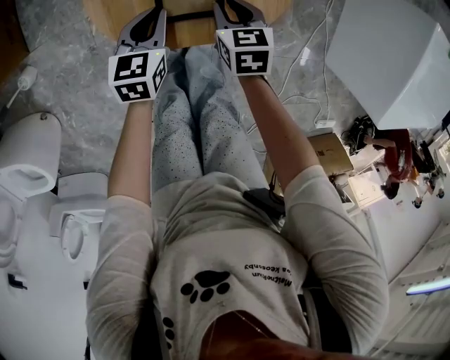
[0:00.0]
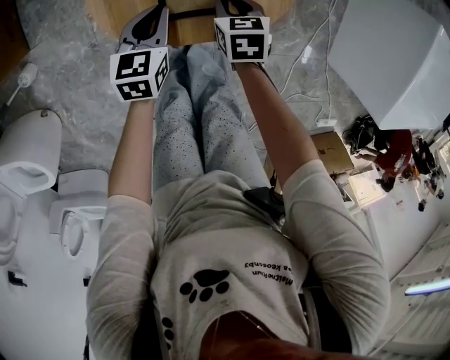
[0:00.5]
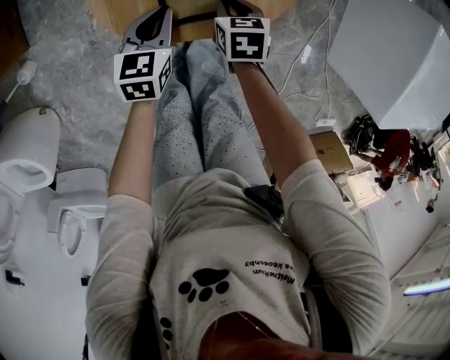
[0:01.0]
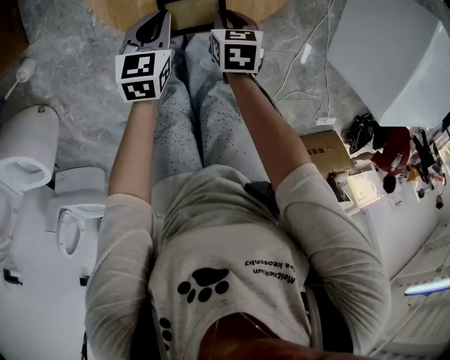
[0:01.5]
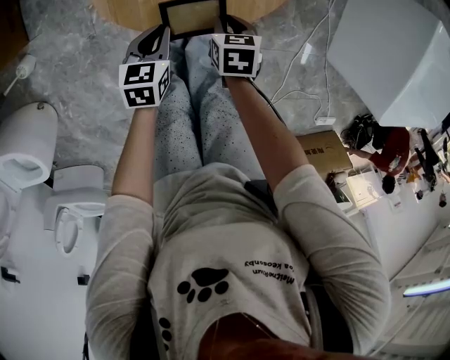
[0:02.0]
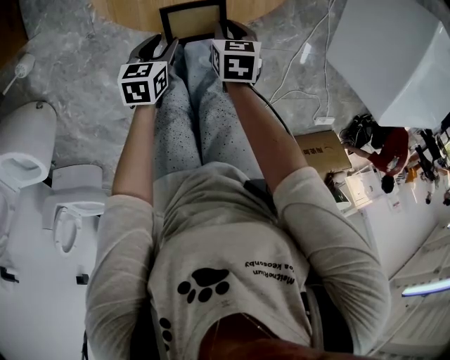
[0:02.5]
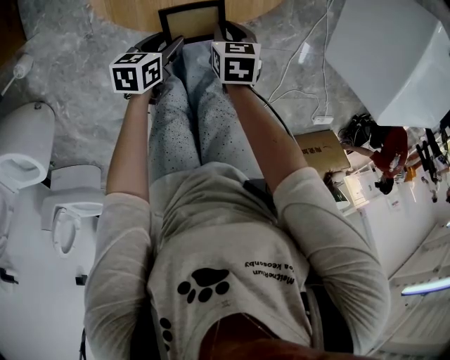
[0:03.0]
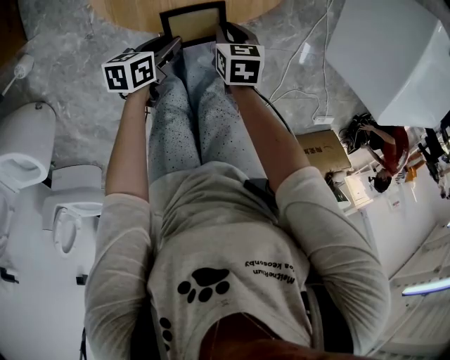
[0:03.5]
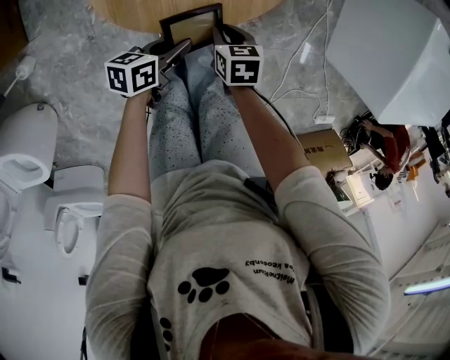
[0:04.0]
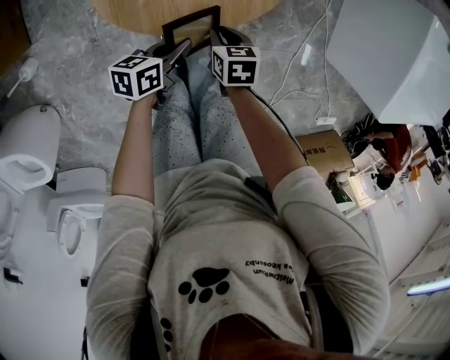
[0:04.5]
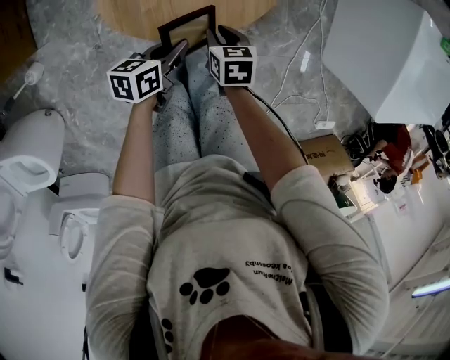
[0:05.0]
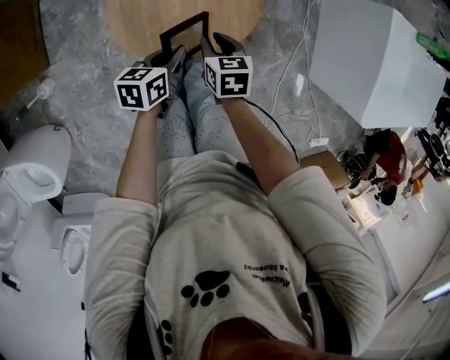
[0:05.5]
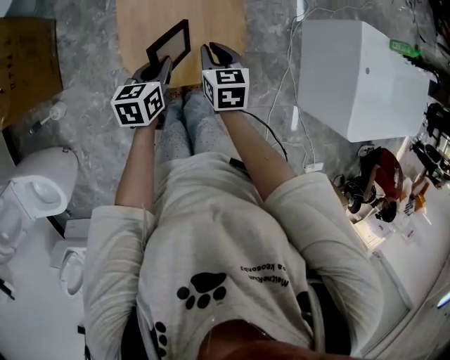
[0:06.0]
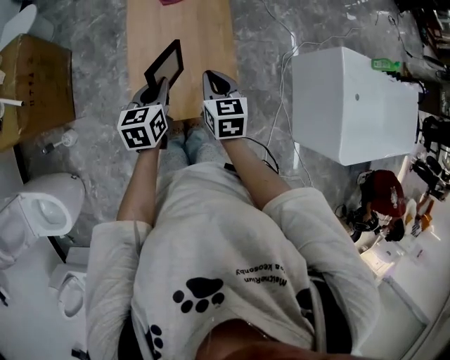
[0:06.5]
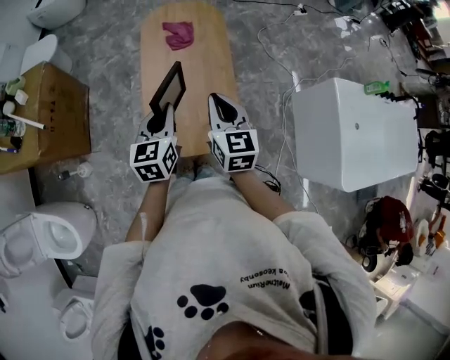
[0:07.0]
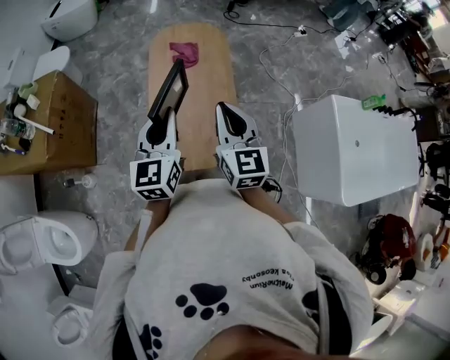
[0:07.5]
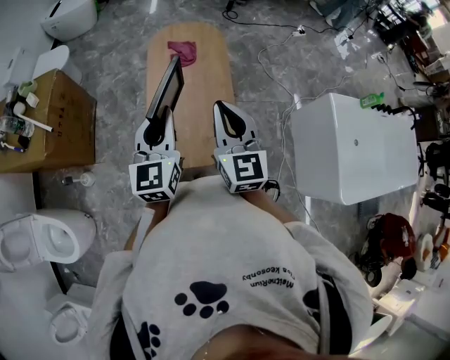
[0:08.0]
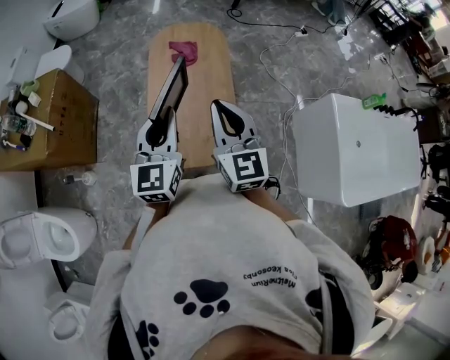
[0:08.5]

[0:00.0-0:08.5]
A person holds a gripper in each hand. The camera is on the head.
0:00.0 to 0:02.0: The two grippers go approximately 10 cm backward.
0:02.0 to 0:04.0: The left gripper travels to the right by approximately 5 cm, changes its angle by approximately 40 degrees, and opens, then closes again.
0:04.0 to 0:06.5: The right gripper shifts some 35 cm upward, and points its fingers approximately 30 degrees further upward; the left gripper travels upward and forward by roughly 35 cm, and turns by approximately 50 degrees.
0:06.5 to 0:08.5: The two grippers go approximately 25 cm upward. The left gripper rotates some 40 degrees, while the right gripper points its fingers some 30 degrees further upward.

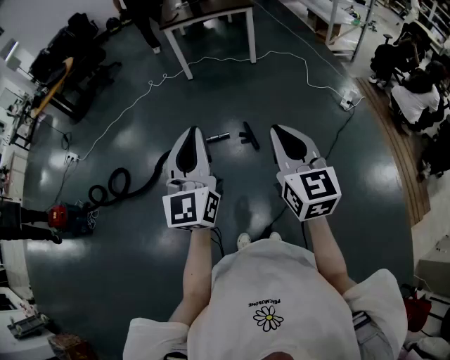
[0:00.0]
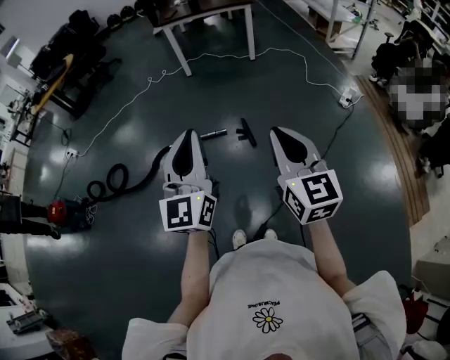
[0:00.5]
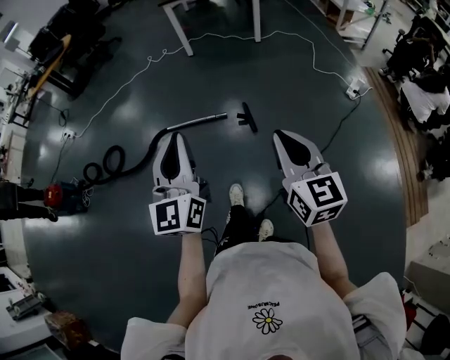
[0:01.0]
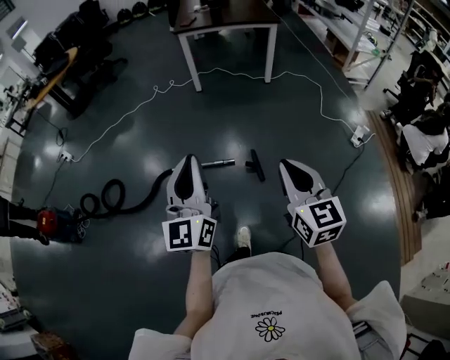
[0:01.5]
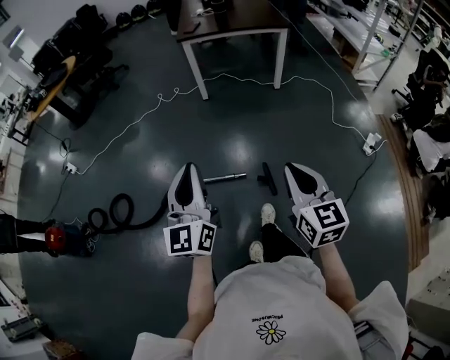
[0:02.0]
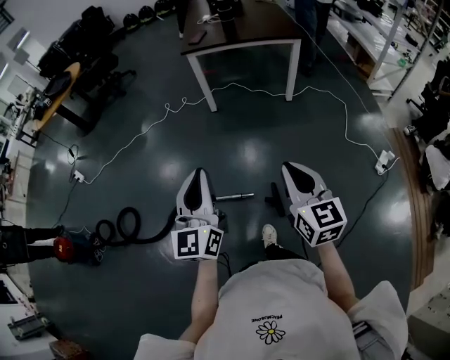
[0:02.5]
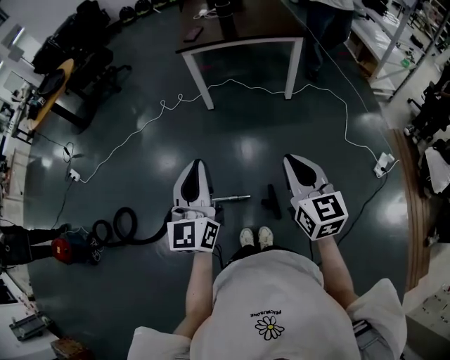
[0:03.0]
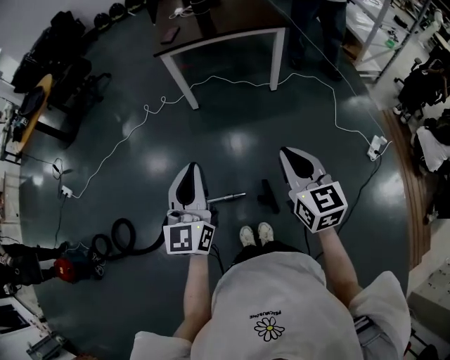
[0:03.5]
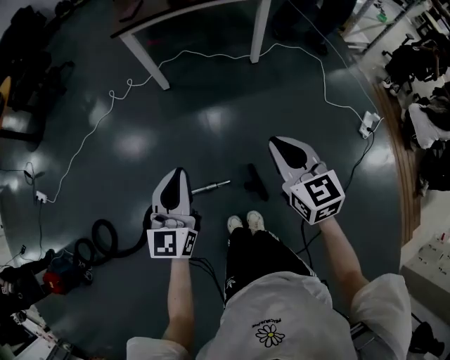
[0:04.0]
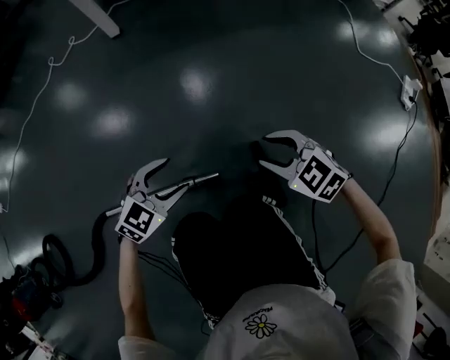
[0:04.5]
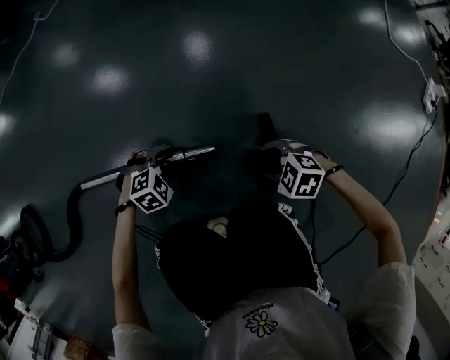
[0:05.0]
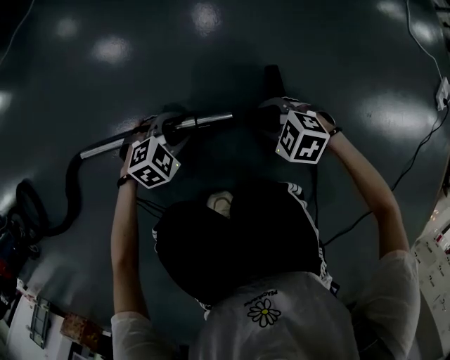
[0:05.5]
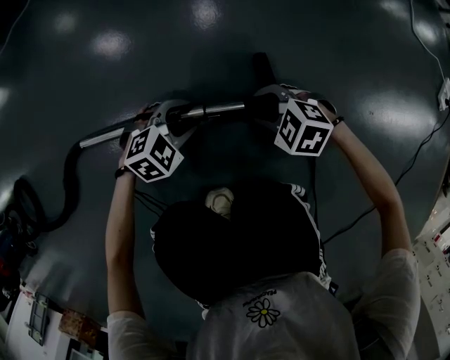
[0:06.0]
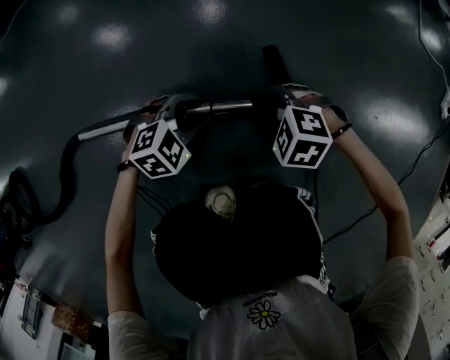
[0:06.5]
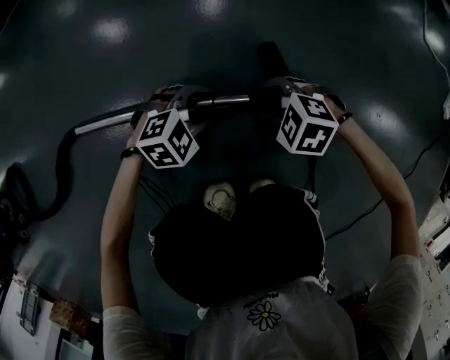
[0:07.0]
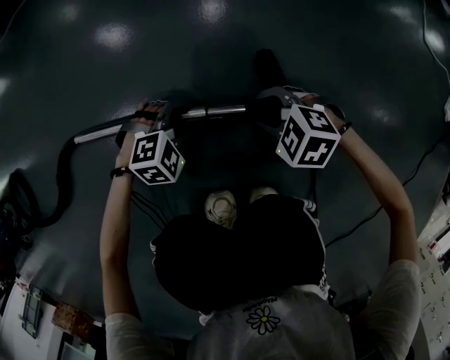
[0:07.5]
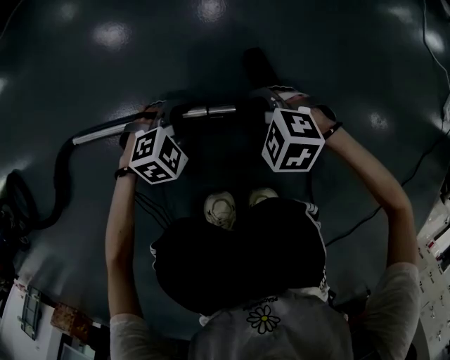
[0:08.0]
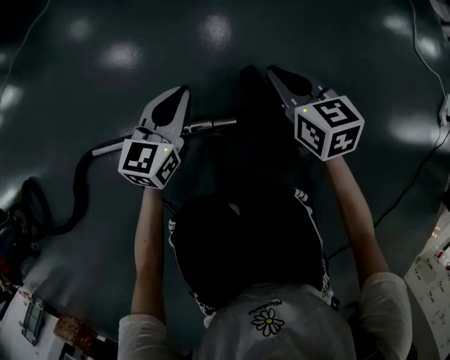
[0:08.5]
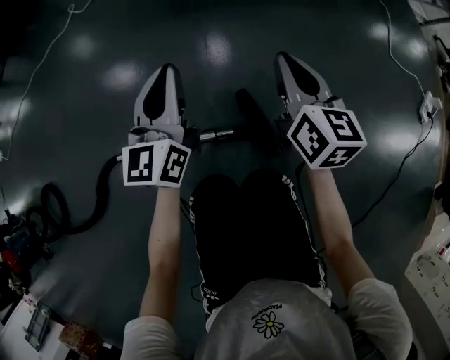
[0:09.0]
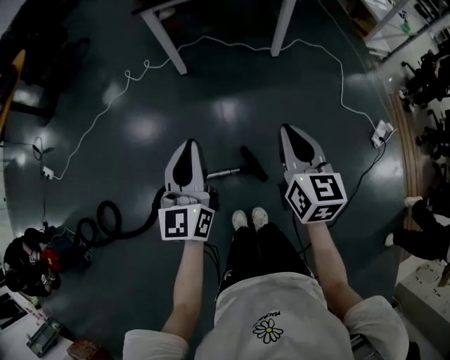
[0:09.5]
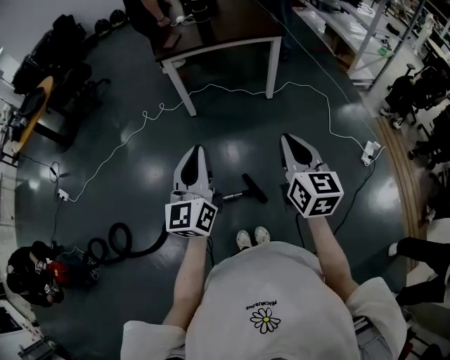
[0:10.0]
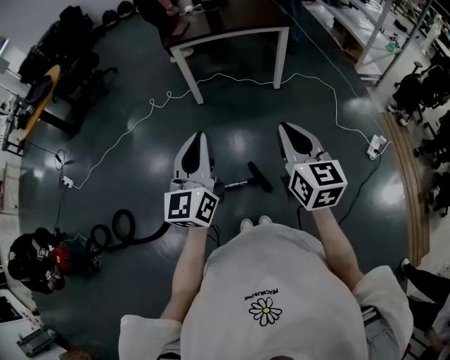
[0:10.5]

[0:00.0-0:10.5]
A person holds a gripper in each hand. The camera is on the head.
0:00.0 to 0:02.0: Both grippers travel together forward, approximately 30 cm.
0:02.0 to 0:04.0: Both grippers move forward and downward, some 40 cm. The left gripper turns by about 20 degrees.
0:04.0 to 0:06.5: Both grippers move downward, about 80 cm. The right gripper angles its fingers downward, by about 50 degrees, and opens up. The left gripper angles its fingers downward, by roughly 50 degrees, and opens up.
0:06.5 to 0:08.5: The left gripper moves upward, approximately 15 cm, tips its fingers upward by about 40 degrees, and closes up, while the right gripper moves about 20 cm, angles its fingers upward, by about 40 degrees, and closes up.
0:08.5 to 0:10.5: Both grippers move upward, about 90 cm. The left gripper changes its angle by approximately 30 degrees. Meanwhile the right gripper swivels some 30 degrees.

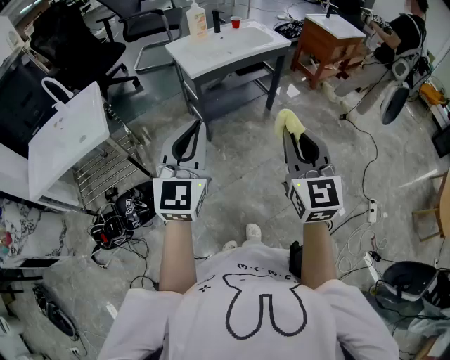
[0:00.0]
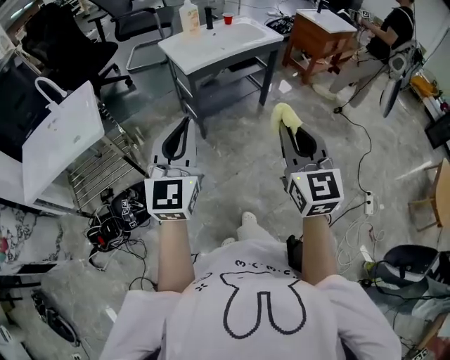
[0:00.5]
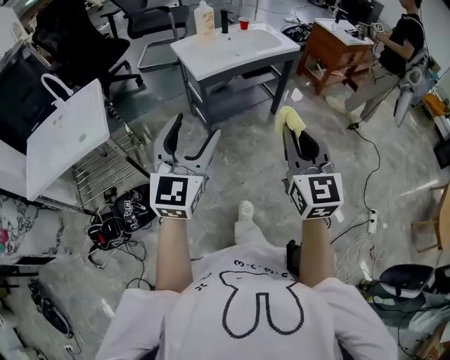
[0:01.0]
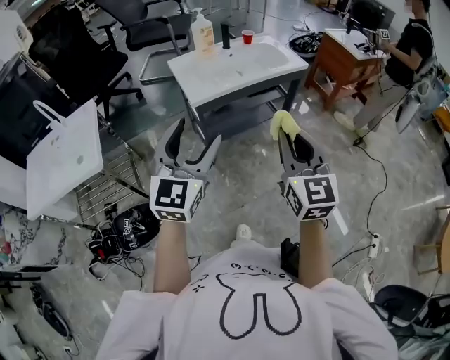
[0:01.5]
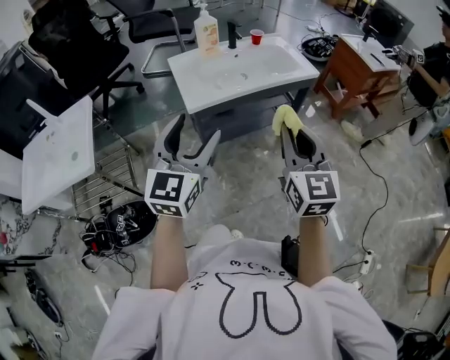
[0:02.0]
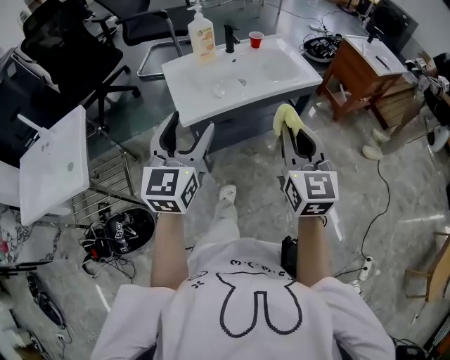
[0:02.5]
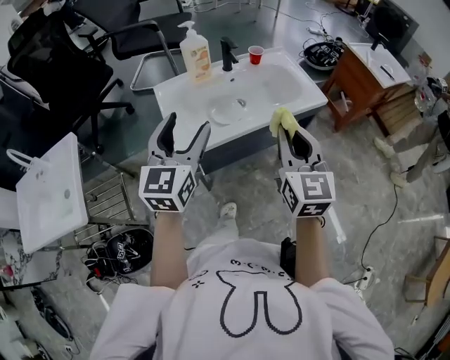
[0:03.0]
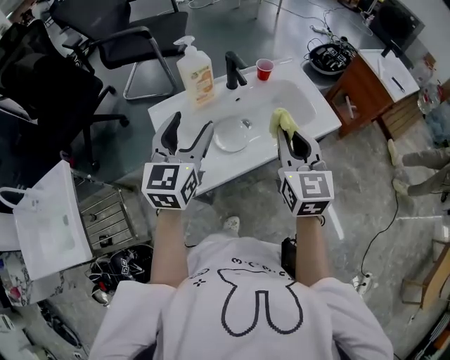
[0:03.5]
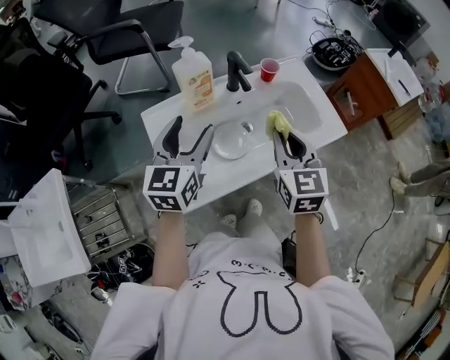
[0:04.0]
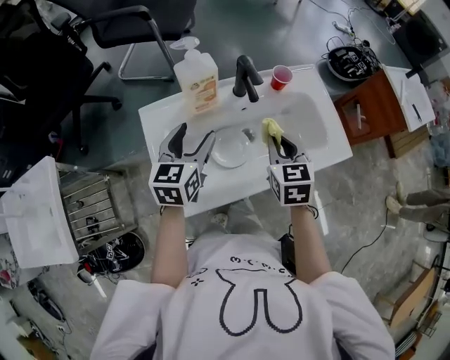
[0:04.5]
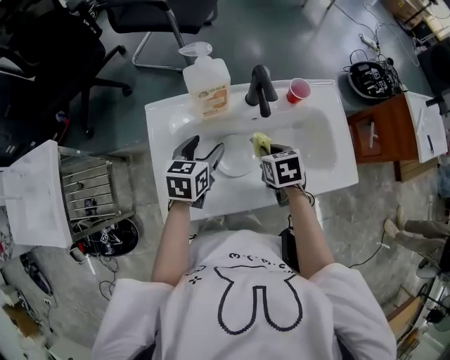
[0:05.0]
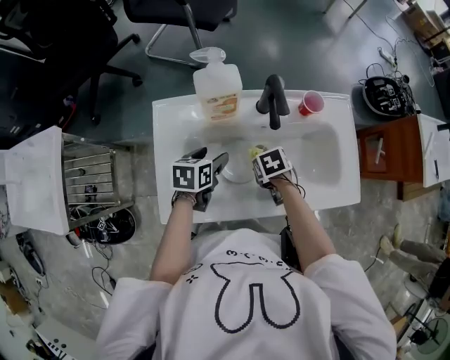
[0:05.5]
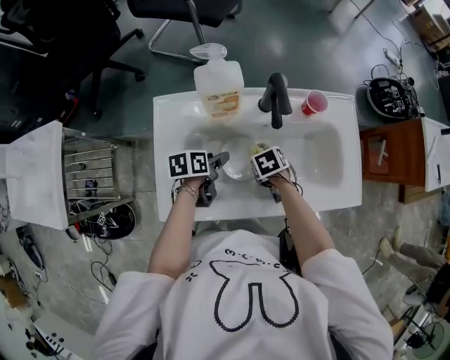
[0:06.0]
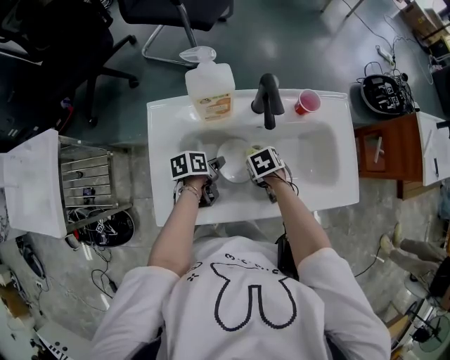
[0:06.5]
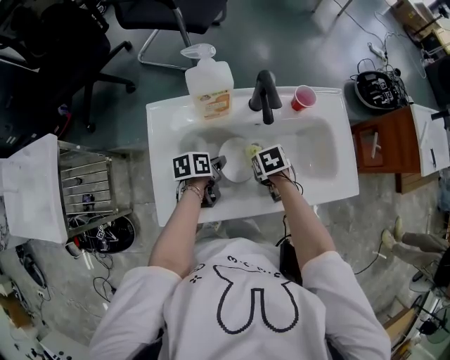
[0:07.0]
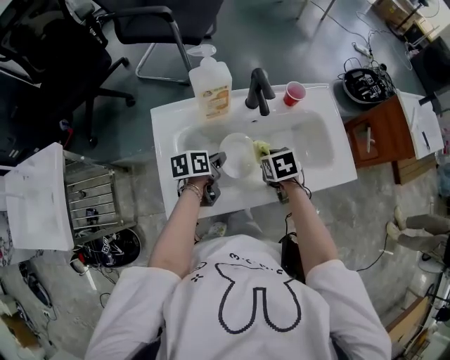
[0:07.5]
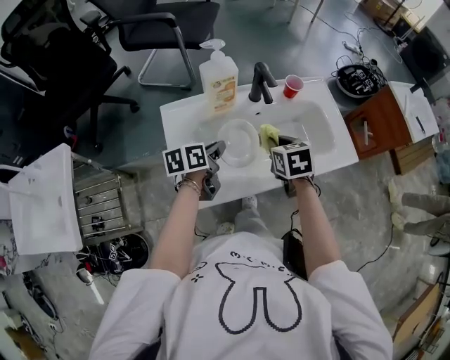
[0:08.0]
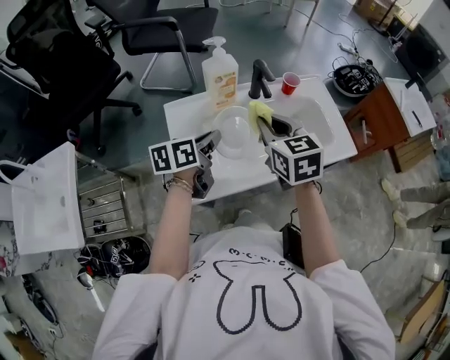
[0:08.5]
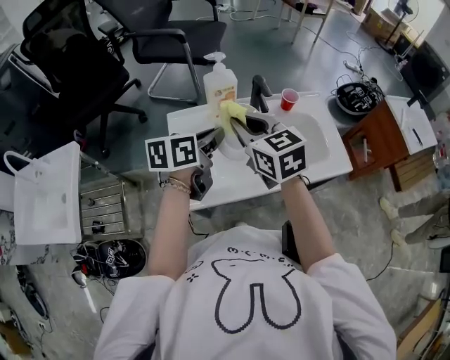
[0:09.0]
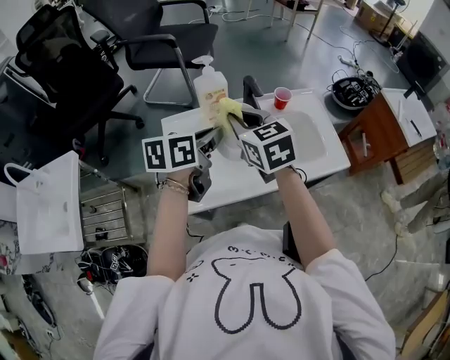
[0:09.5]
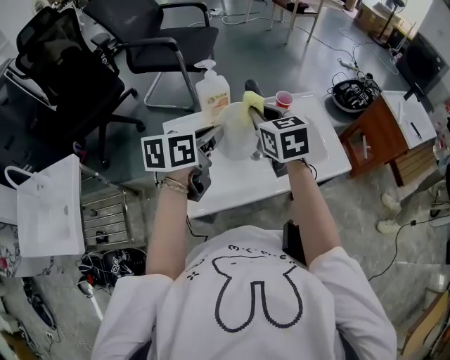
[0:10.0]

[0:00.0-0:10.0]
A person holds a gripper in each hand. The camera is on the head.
0:00.0 to 0:02.0: Both grippers move forward, about 30 cm. The left gripper opens.
0:02.0 to 0:04.0: The two grippers travel together, forward, roughly 50 cm.
0:04.0 to 0:06.0: The grippers both shift downward by some 30 cm. The right gripper angles its fingers downward, by some 60 degrees; the left gripper rolls counterclockwise, seen from behind, by approximately 50 degrees.
0:06.0 to 0:08.0: The right gripper heads upward, covering roughly 20 cm, and rotates about 40 degrees. Meanwhile the left gripper is displaced upward by about 10 cm, changes its angle by approximately 20 degrees, and closes.
0:08.0 to 0:10.0: Both grippers travel together upward, about 20 cm. The right gripper swivels some 20 degrees; the left gripper rotates about 20 degrees.
